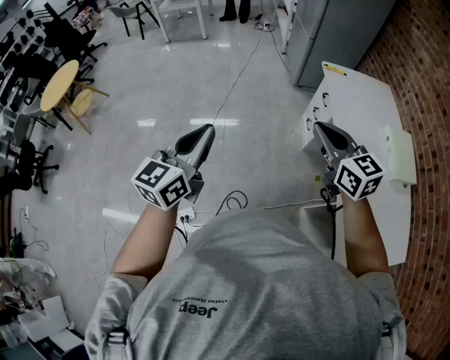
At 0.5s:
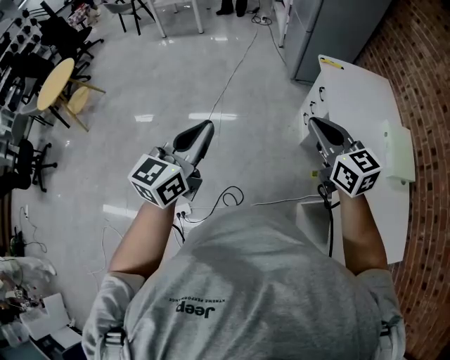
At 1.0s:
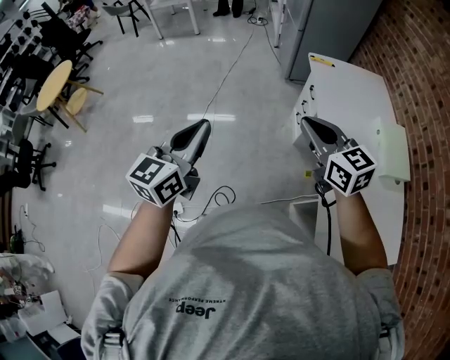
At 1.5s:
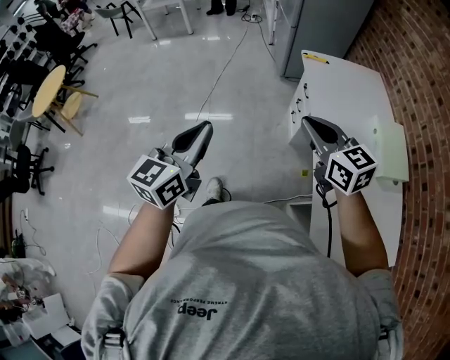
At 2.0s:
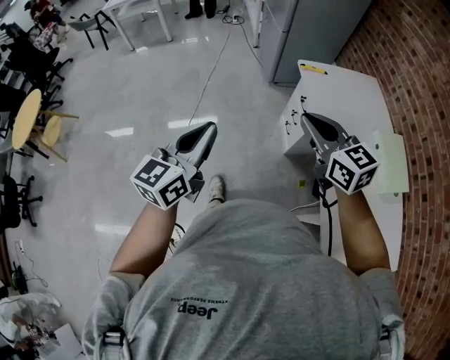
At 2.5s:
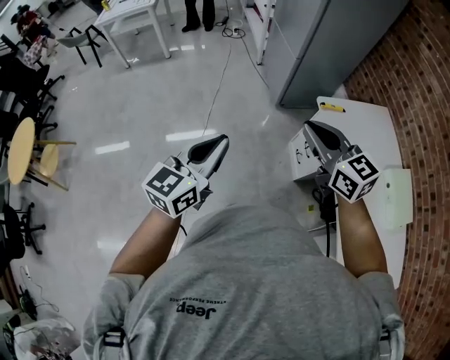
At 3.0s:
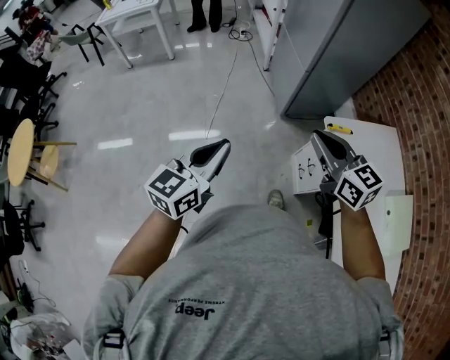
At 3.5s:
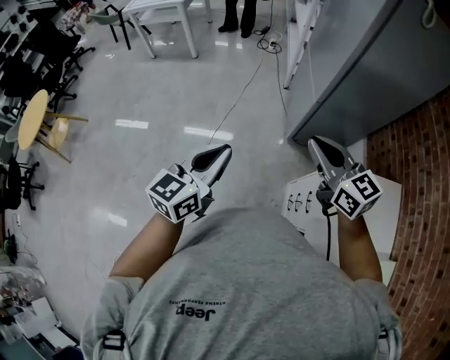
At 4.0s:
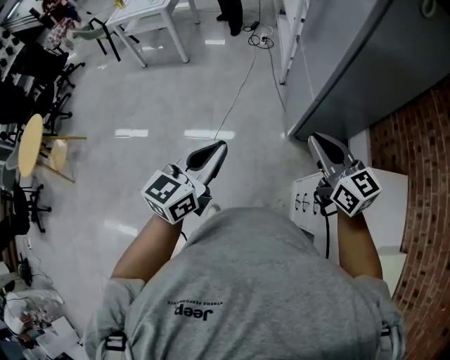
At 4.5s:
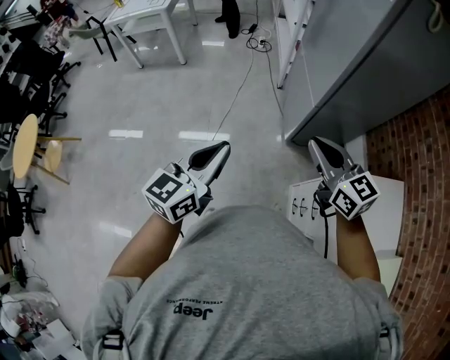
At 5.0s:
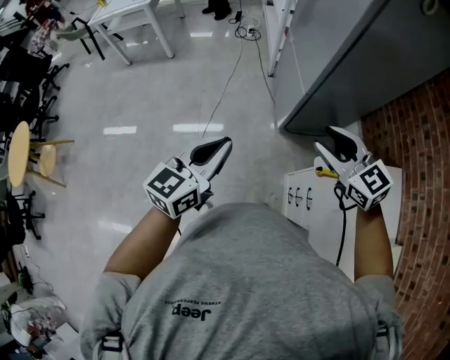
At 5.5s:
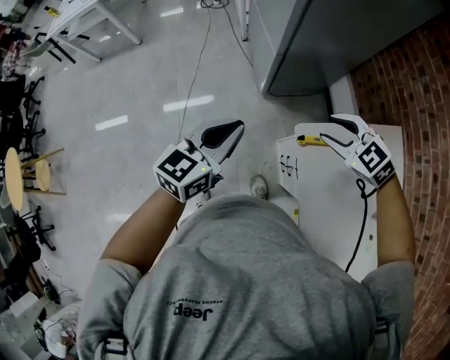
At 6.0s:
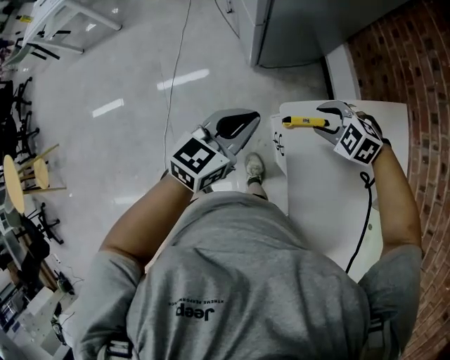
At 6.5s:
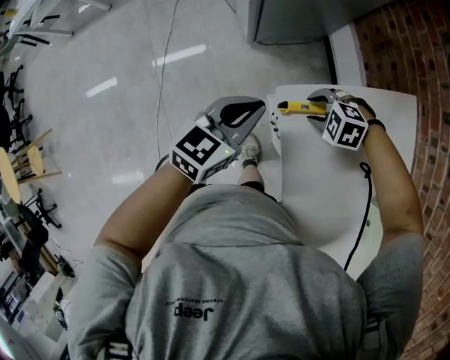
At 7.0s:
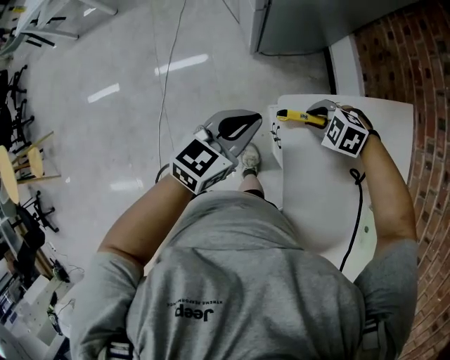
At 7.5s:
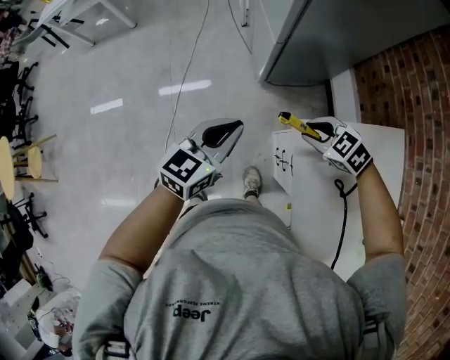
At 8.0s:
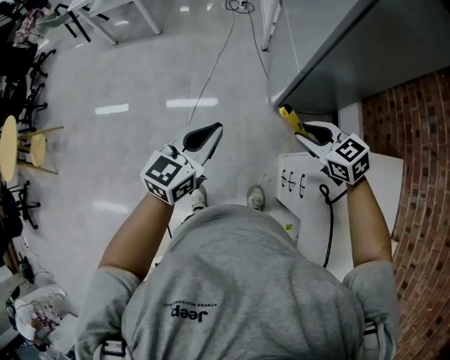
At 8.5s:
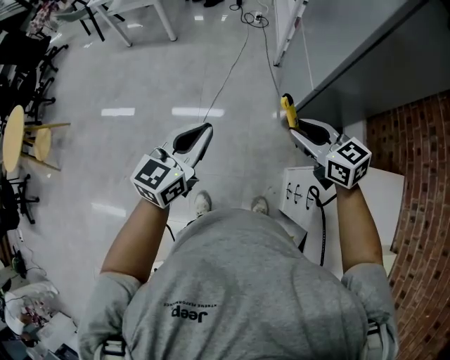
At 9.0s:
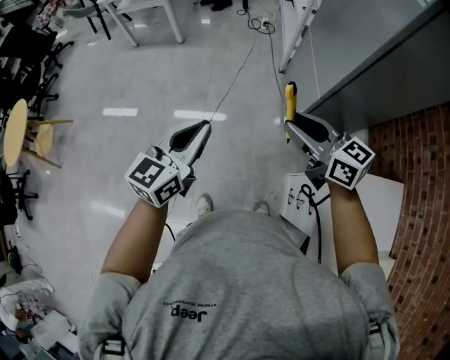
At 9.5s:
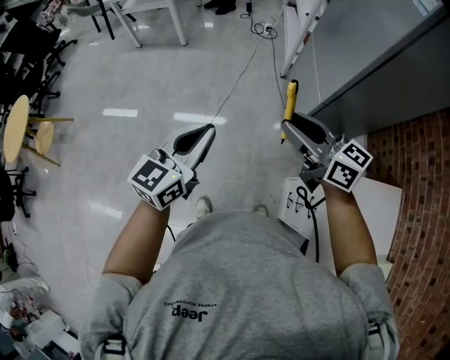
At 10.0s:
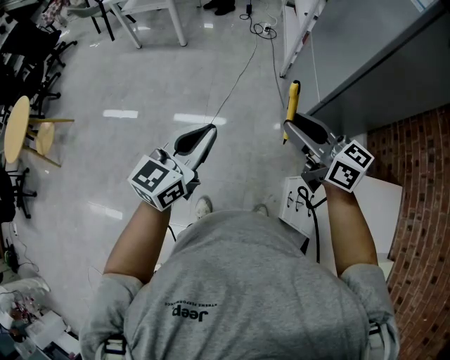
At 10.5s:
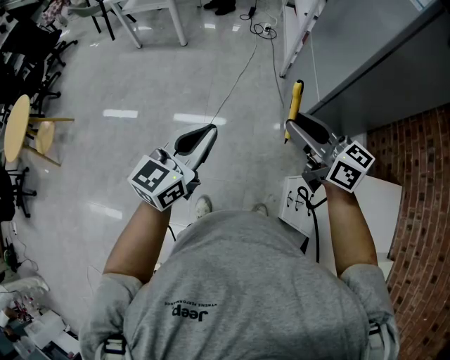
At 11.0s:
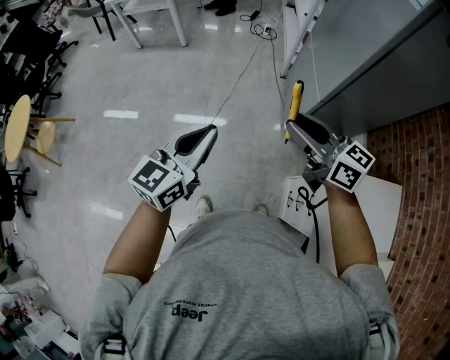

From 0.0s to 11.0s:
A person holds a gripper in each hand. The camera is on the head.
From 0.0s to 2.0s: The right gripper goes some 20 cm forward. Meanwhile the left gripper shifts approximately 25 cm forward and to the right.
From 2.0s to 3.5s: The pair of grippers is taken forward, some 40 cm.
From 3.5s to 5.5s: The right gripper travels to the right and downward by approximately 25 cm, tilts its fingers roughly 40 degrees downward, and opens up; the left gripper goes about 20 cm to the right, forward and downward, and turns by some 20 degrees.
From 5.5s to 7.5s: The right gripper heads downward, covering about 10 cm; the left gripper is displaced downward by about 5 cm.
From 7.5s to 9.0s: The right gripper goes some 35 cm to the left, upward and forward, and angles its fingers upward, by approximately 40 degrees; the left gripper is displaced to the left and upward by some 30 cm, and turns by approximately 20 degrees.
From 9.0s to 11.0s: There are only small adjustments of the grippers.

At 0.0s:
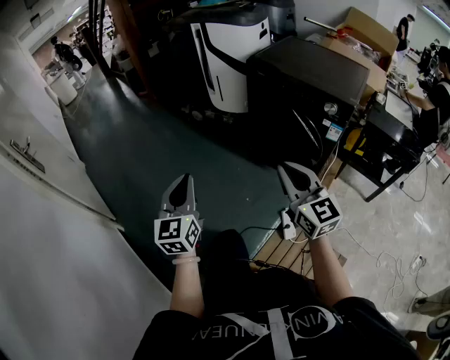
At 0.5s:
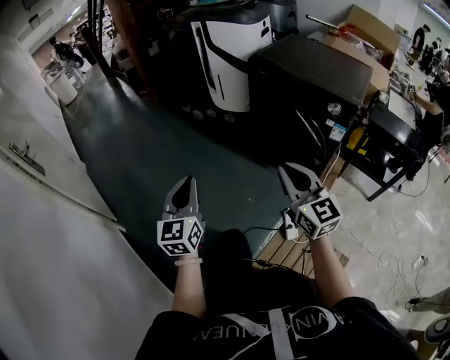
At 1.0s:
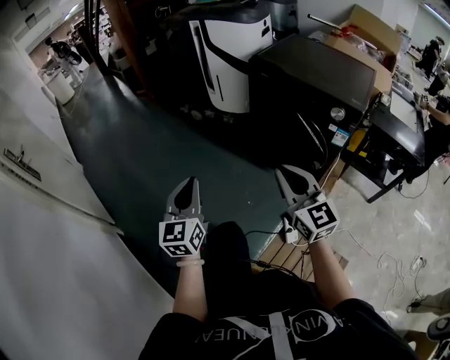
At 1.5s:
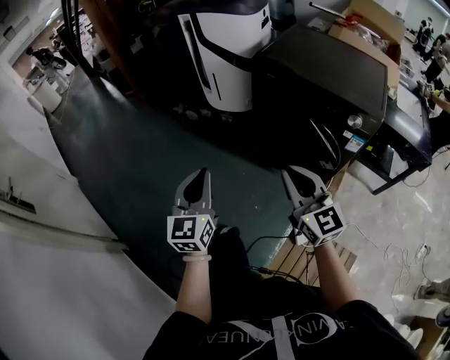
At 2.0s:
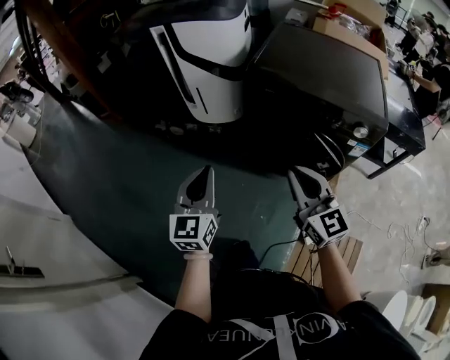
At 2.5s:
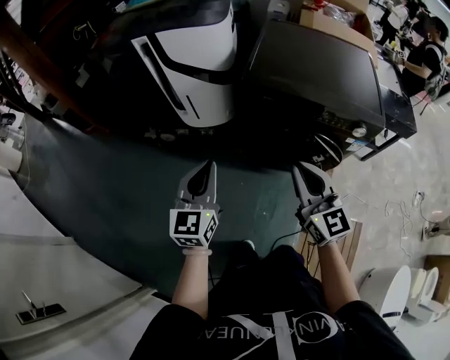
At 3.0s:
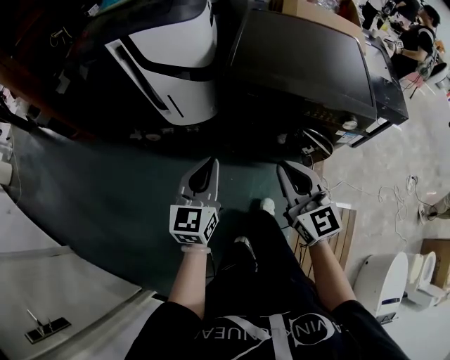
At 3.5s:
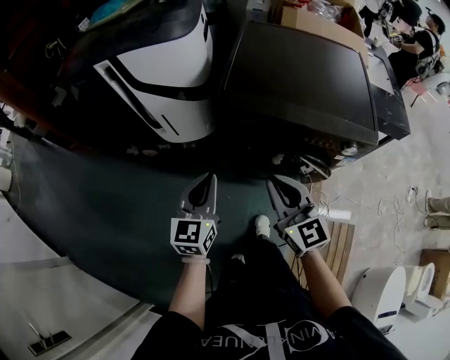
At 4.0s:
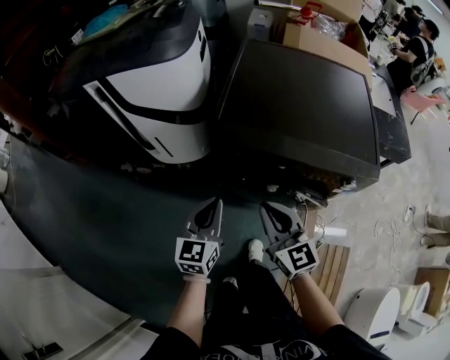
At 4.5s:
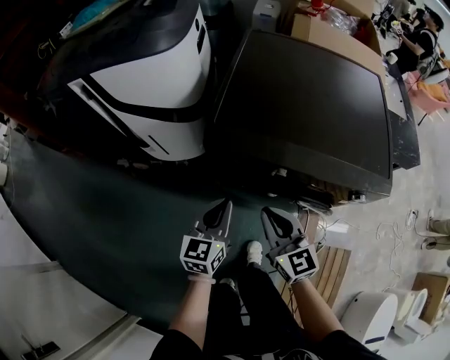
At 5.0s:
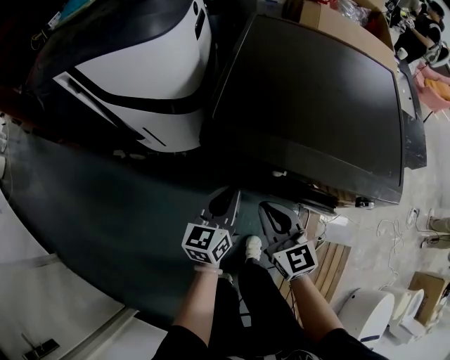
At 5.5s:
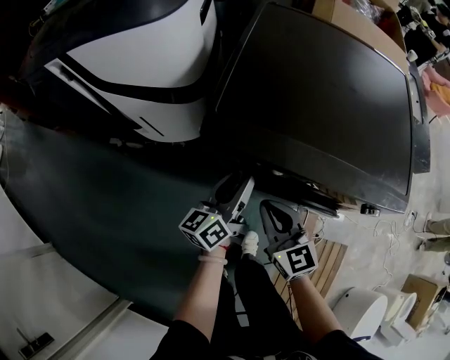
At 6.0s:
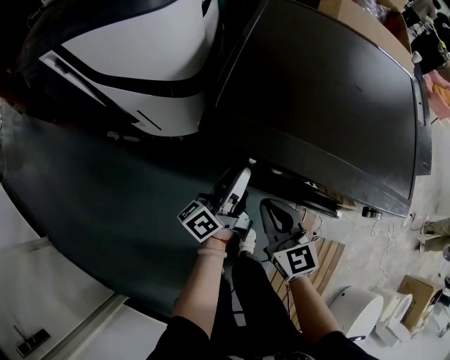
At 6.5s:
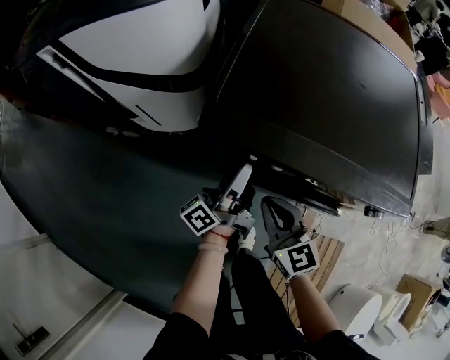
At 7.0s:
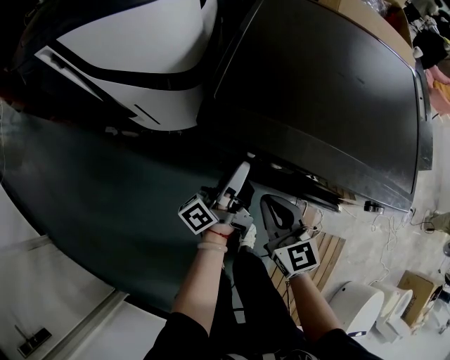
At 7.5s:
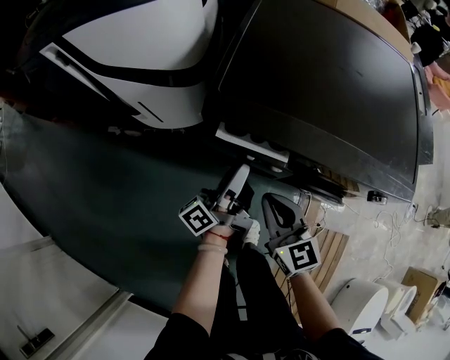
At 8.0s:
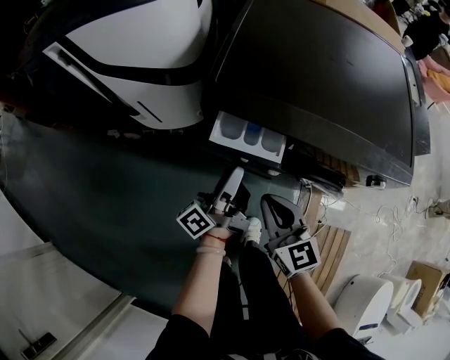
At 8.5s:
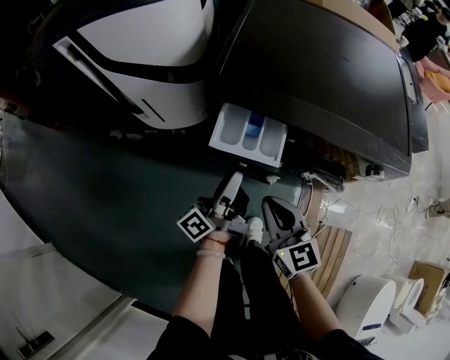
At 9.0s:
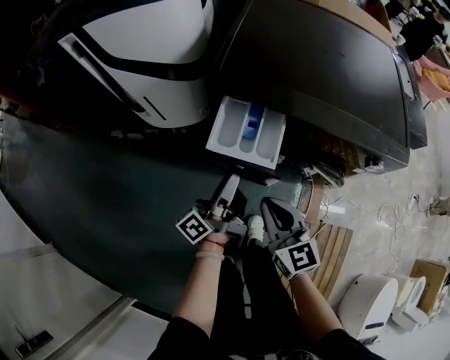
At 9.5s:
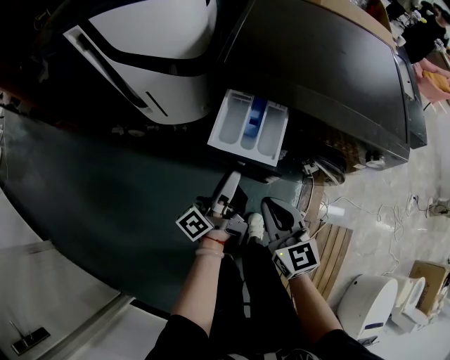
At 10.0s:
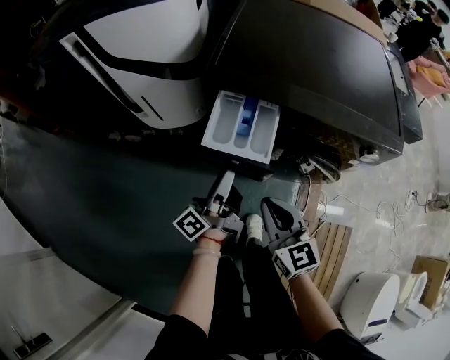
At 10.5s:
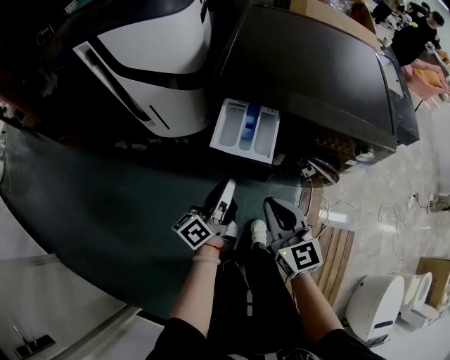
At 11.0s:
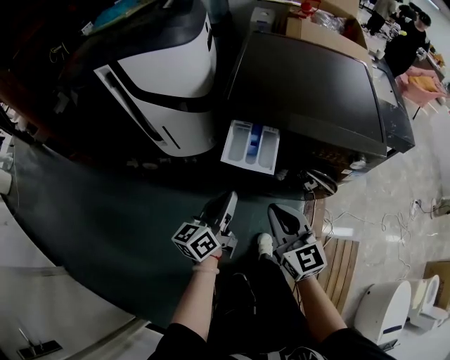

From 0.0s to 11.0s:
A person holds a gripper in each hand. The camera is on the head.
From 0.0s to 2.0s: Both grippers move forward, approximately 30 cm. The left gripper rotates approximately 20 degrees.
From 2.0s to 3.5s: Both grippers travel together forward, approximately 15 cm.
From 3.5s to 5.5s: The left gripper is displaced forward, downward and to the right by about 25 cm, twists approximately 40 degrees counterclockwise, seen from behind, and opens up, while the right gripper moves downward and forward, roughly 20 cm.
From 5.5s to 7.5s: The left gripper swivels roughly 30 degrees.
From 7.5s to 9.0s: The grippers both shift backward by roughly 10 cm.
From 9.0s to 11.0s: The left gripper goes some 10 cm backward and upward, turns by roughly 40 degrees, and closes its fingers. The right gripper heads upward, covering approximately 10 cm.

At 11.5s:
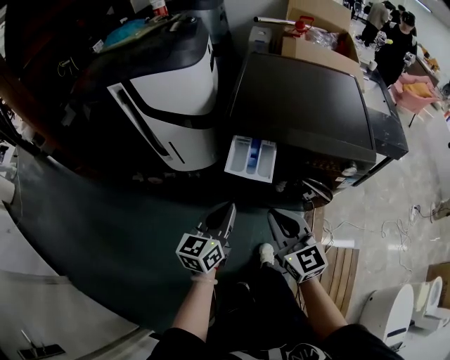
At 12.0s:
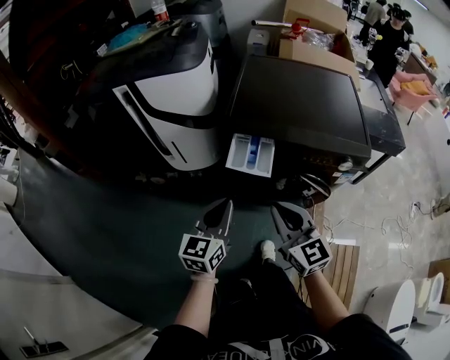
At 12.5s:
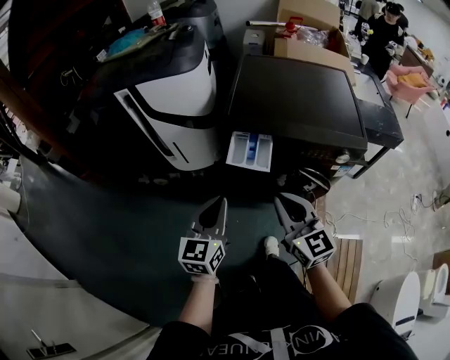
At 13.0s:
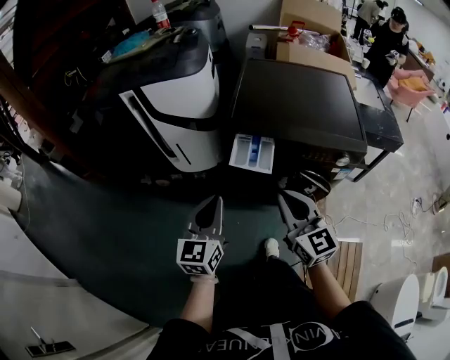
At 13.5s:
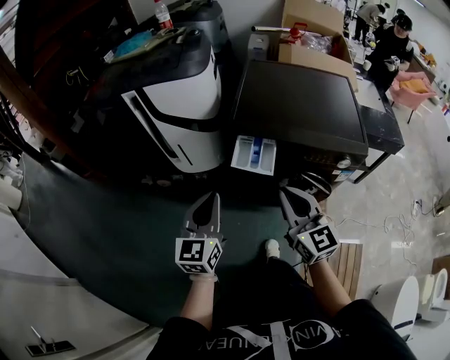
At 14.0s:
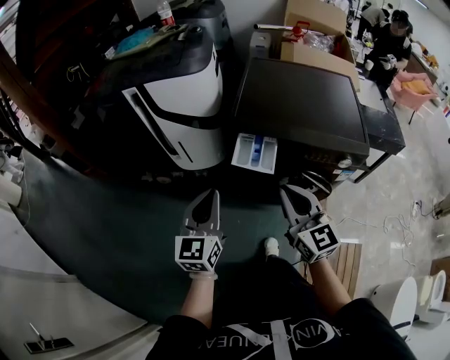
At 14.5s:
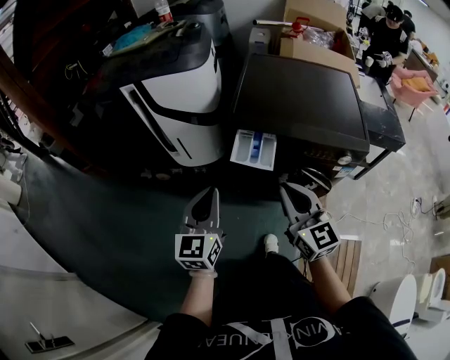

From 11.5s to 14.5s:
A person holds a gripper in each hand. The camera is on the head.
From 11.5s to 13.0s: The grippers both shift upward by approximately 10 cm.
From 13.0s to 14.5s: The grippers move only a little.

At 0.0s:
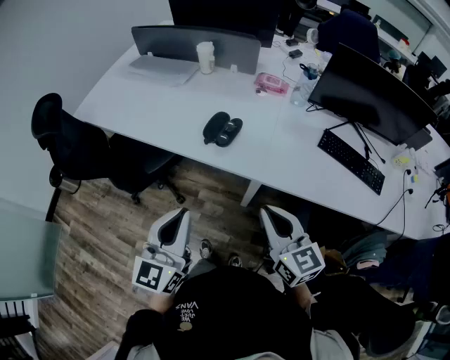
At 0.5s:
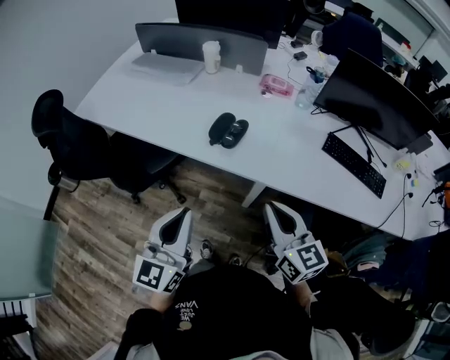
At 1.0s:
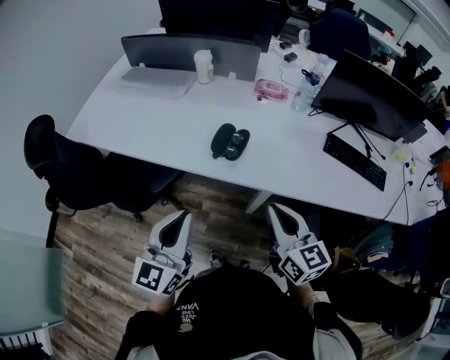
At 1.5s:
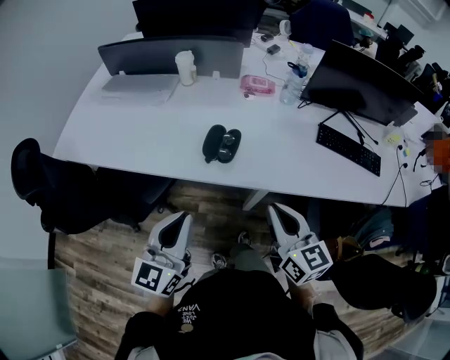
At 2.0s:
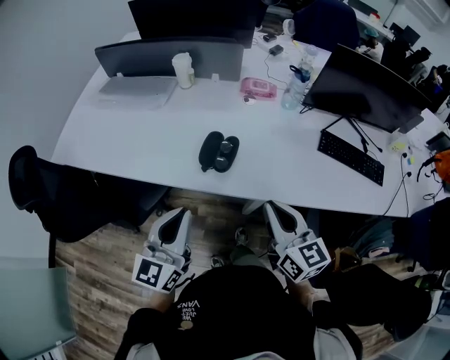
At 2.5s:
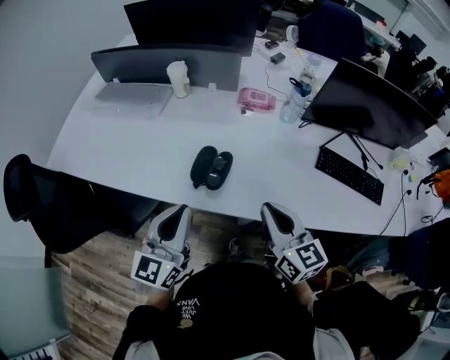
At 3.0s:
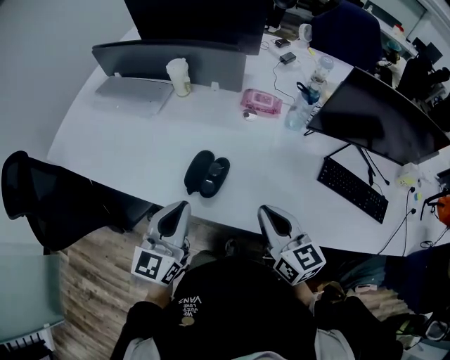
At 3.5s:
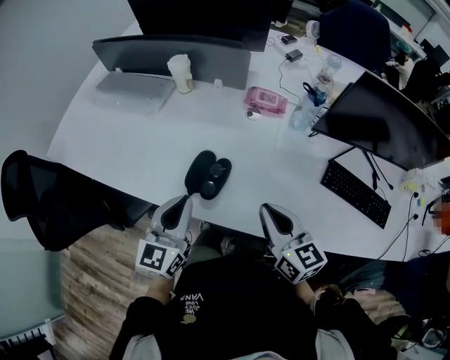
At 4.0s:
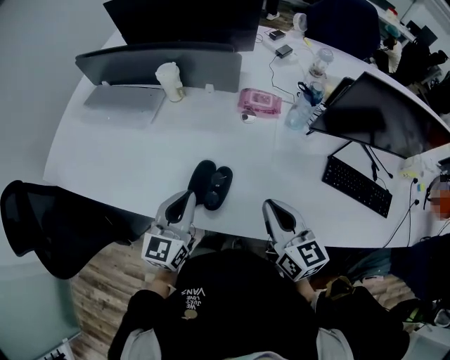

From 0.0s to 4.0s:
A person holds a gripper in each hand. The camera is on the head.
From 0.0s to 2.0s: The right gripper travels forward by roughly 10 cm; the left gripper moves forward and to the left, some 15 cm.
From 2.0s to 4.0s: Both grippers move forward, about 20 cm.
